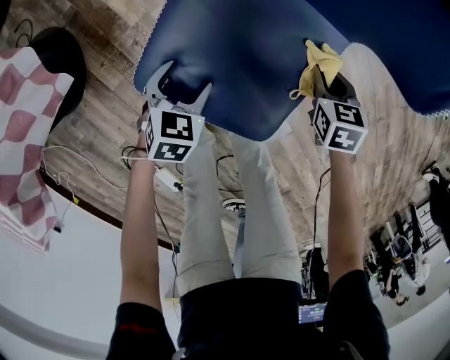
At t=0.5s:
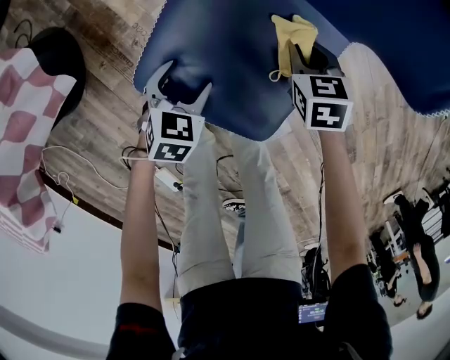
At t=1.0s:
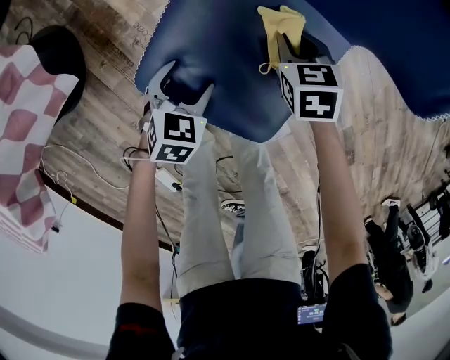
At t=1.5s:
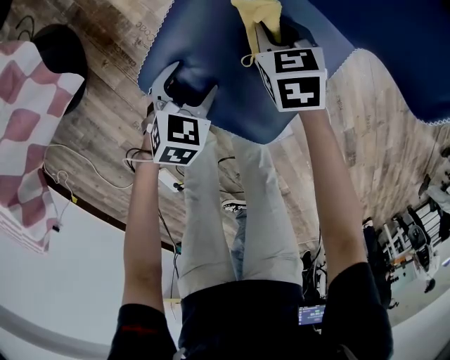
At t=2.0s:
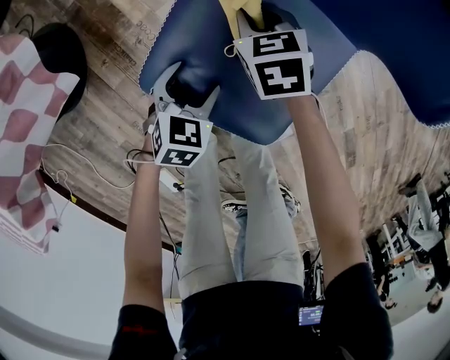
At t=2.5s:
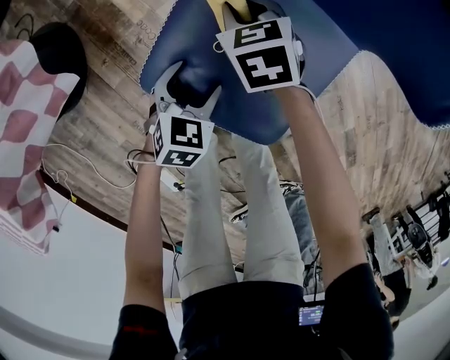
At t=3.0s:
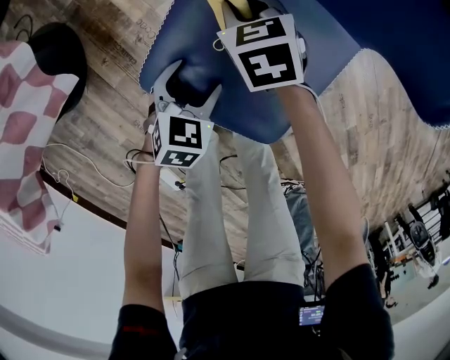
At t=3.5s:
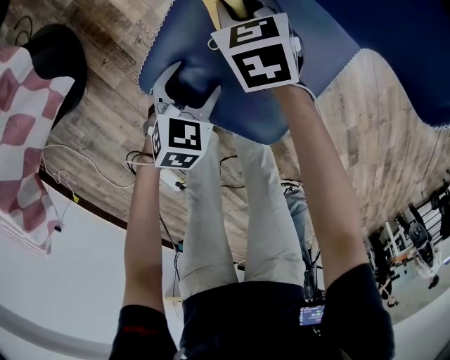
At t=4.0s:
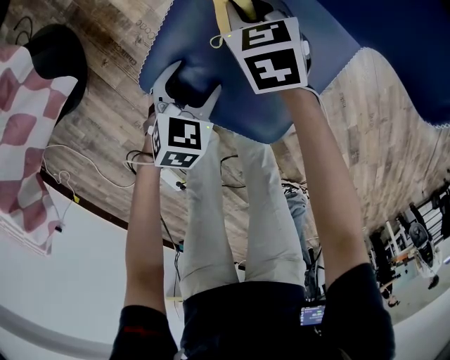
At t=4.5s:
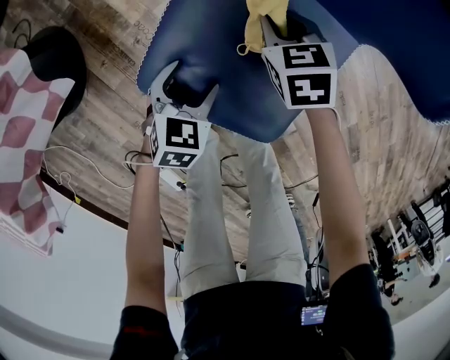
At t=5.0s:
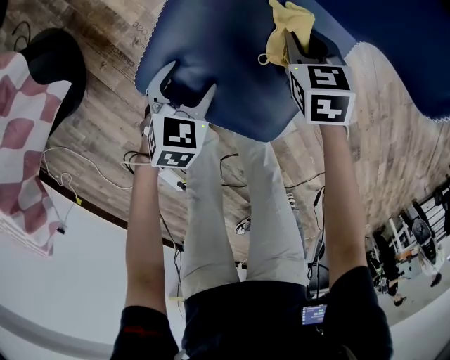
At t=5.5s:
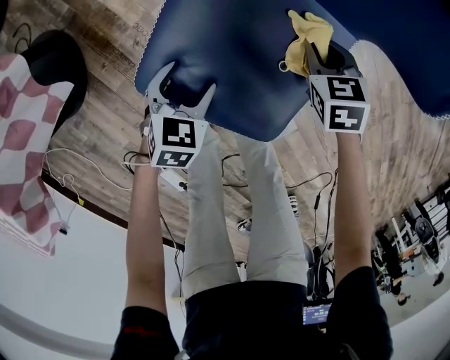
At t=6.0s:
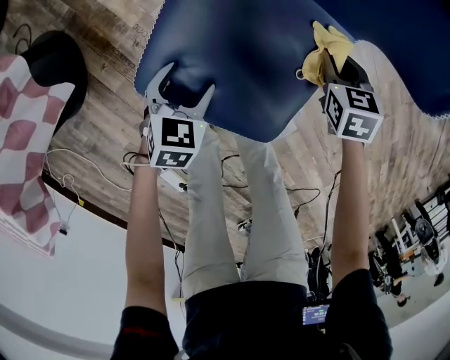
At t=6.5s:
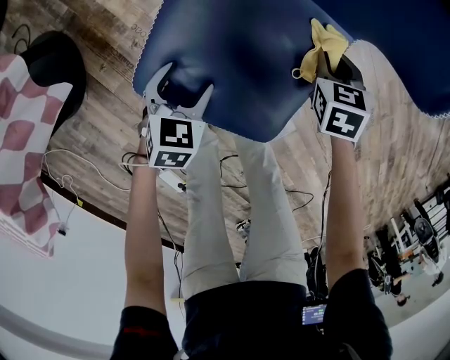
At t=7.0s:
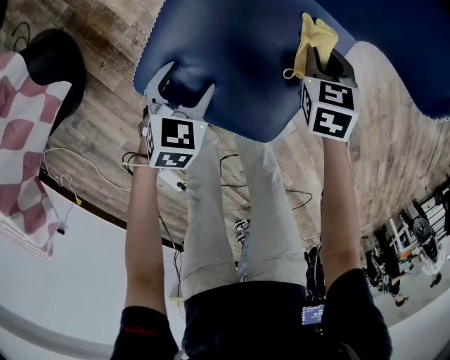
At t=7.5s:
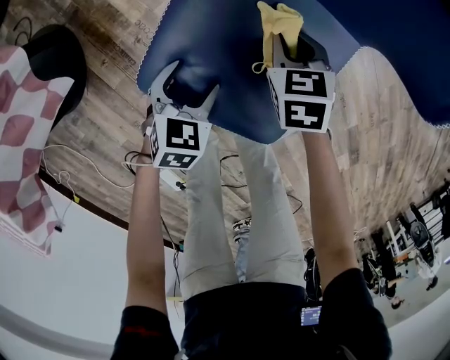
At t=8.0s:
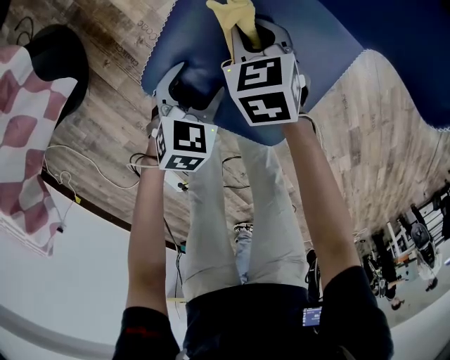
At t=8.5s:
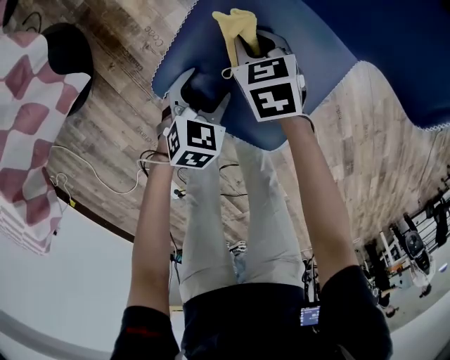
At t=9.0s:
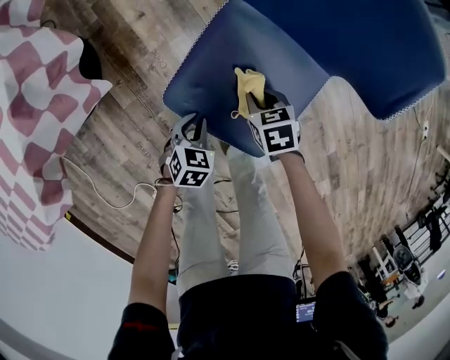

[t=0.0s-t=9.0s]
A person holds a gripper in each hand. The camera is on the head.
t=0.0s to t=2.0s: The right gripper shifts about 20 cm to the left.
t=2.0s to t=4.5s: The right gripper moves to the right, approximately 5 cm.
t=4.5s to t=7.0s: The right gripper moves to the right, approximately 15 cm.
t=7.0s to t=9.0s: The right gripper moves approximately 15 cm, and swivels some 20 degrees; the left gripper shifts by roughly 5 cm, and closes.

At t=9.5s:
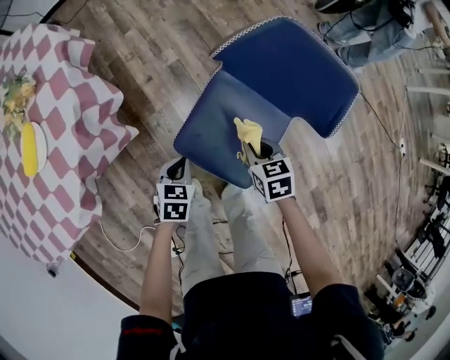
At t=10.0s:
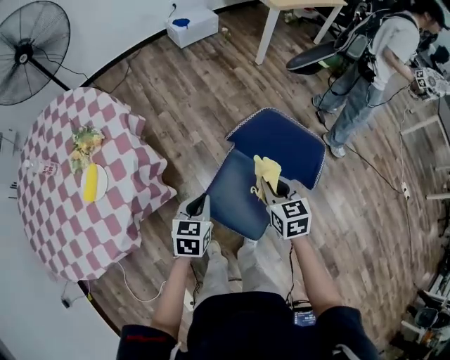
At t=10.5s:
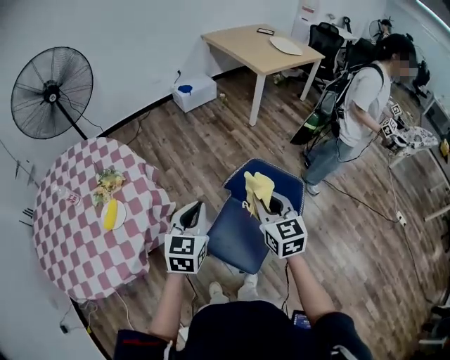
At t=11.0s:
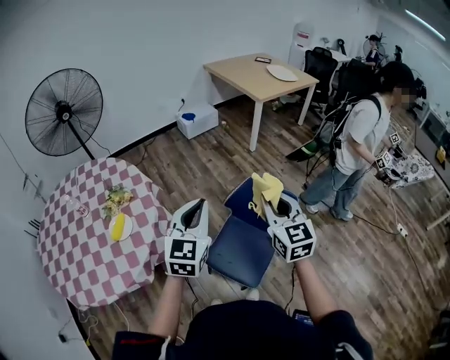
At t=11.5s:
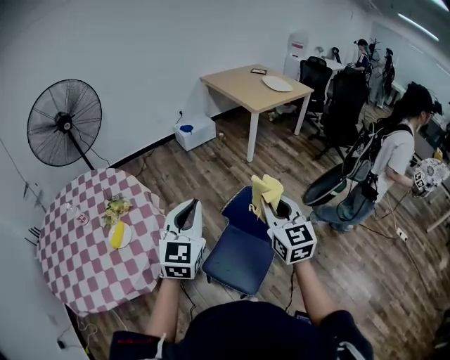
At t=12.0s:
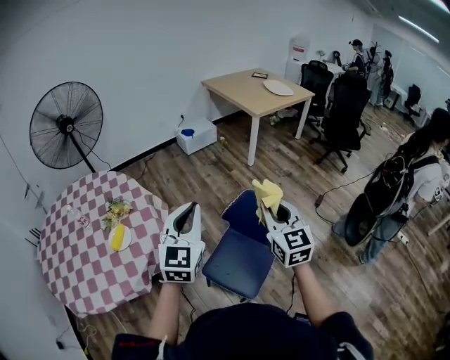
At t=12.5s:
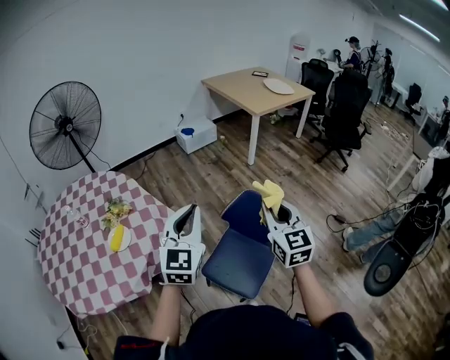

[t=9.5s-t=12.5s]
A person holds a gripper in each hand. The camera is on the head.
t=9.5s to t=11.0s: Both grippers travel together upward, roughly 60 cm. The left gripper angles its fingers upward, by about 50 degrees. The right gripper tilts its fingers roughly 50 degrees upward.
t=11.0s to t=12.5s: There are only small adjustments of the grippers.

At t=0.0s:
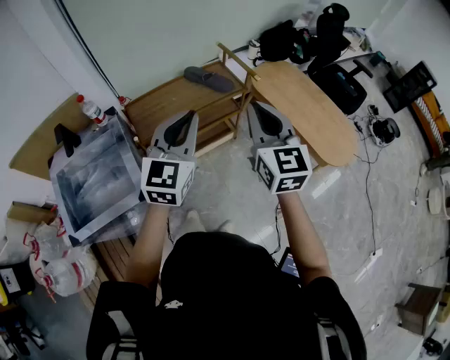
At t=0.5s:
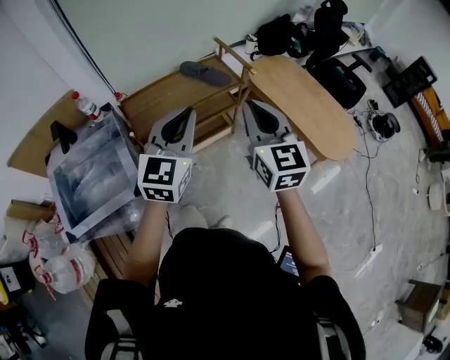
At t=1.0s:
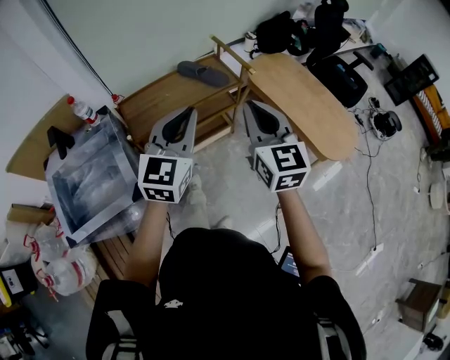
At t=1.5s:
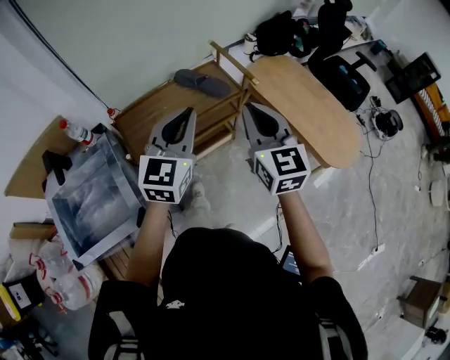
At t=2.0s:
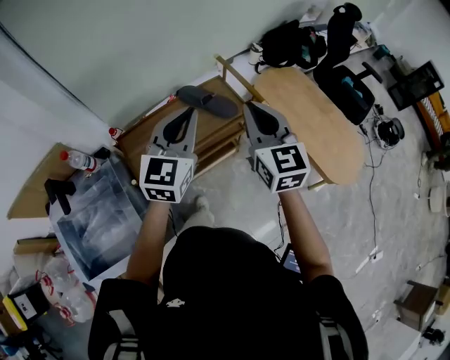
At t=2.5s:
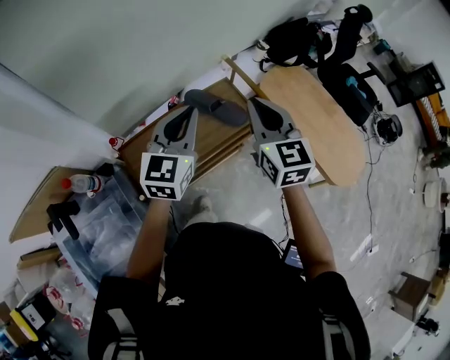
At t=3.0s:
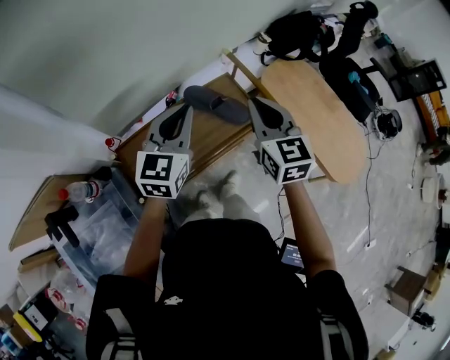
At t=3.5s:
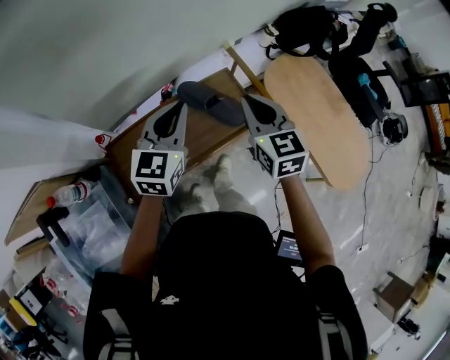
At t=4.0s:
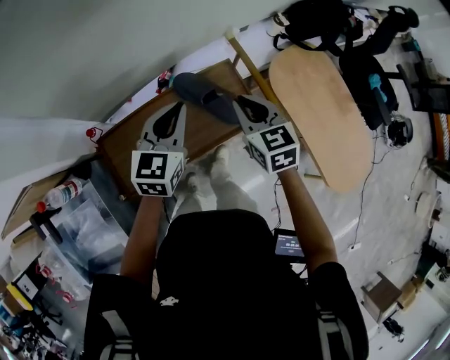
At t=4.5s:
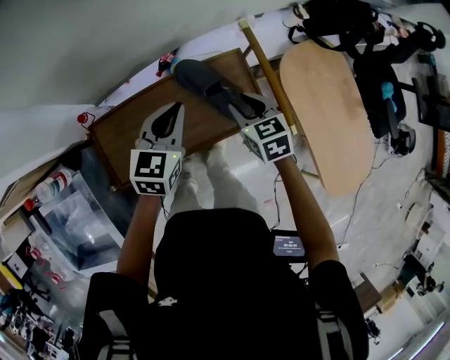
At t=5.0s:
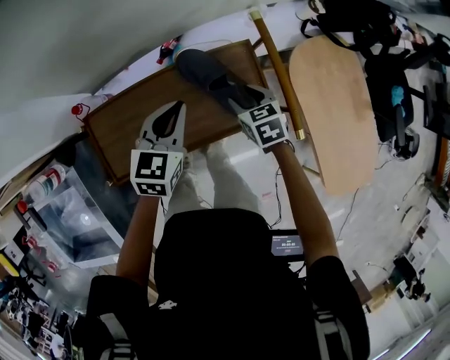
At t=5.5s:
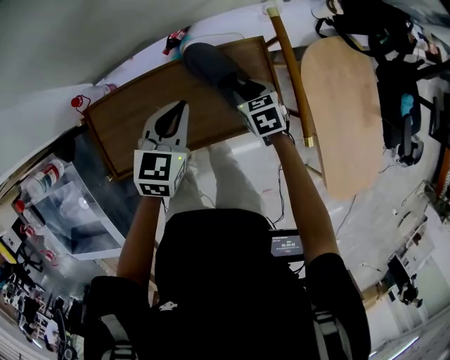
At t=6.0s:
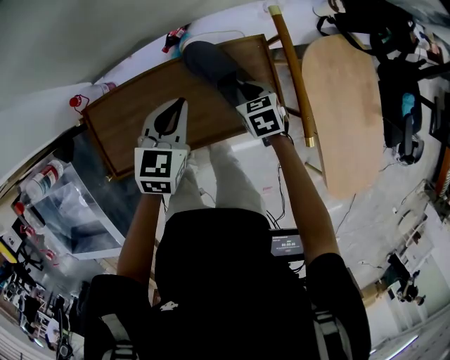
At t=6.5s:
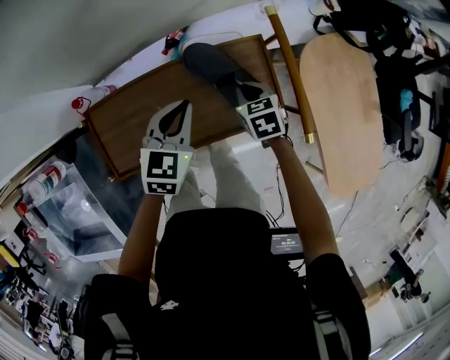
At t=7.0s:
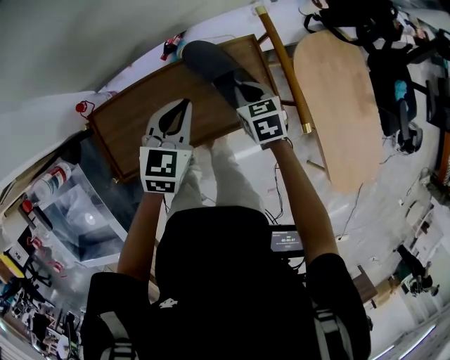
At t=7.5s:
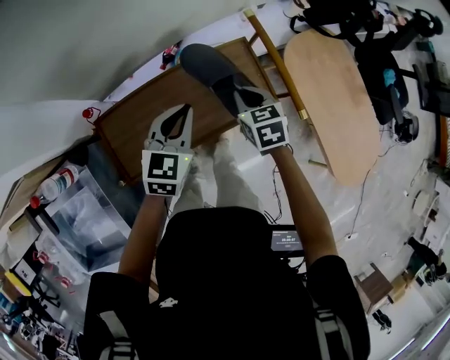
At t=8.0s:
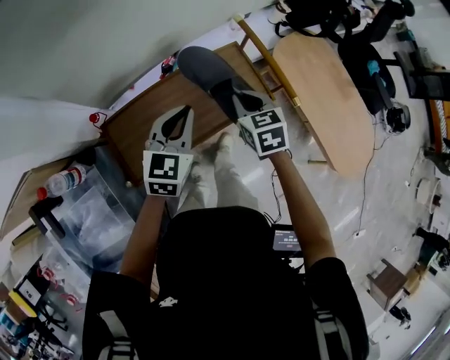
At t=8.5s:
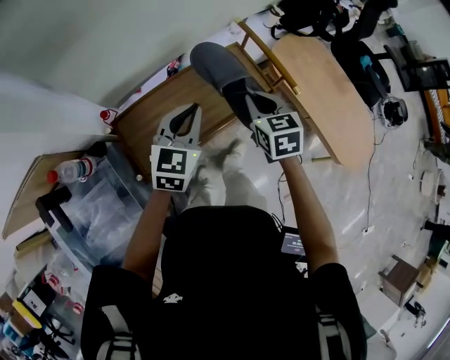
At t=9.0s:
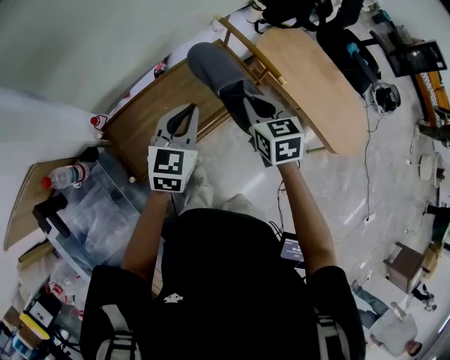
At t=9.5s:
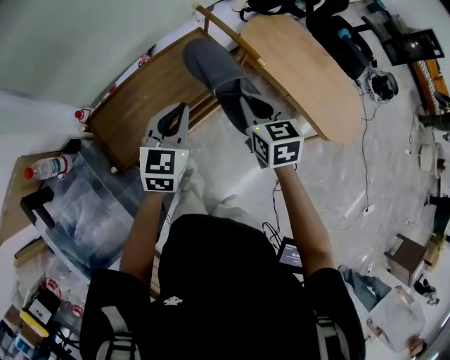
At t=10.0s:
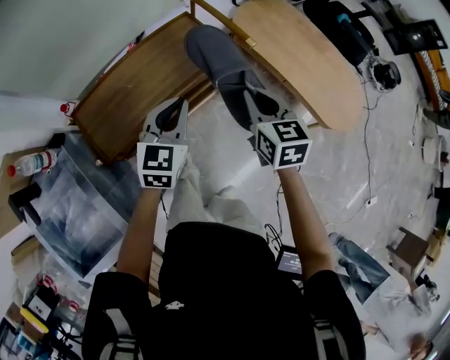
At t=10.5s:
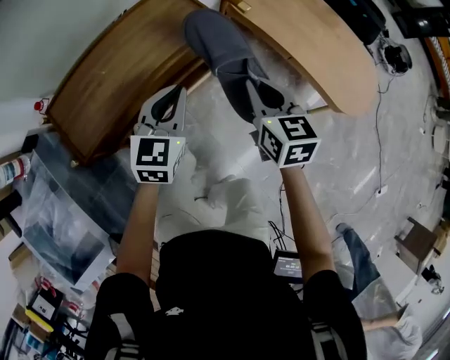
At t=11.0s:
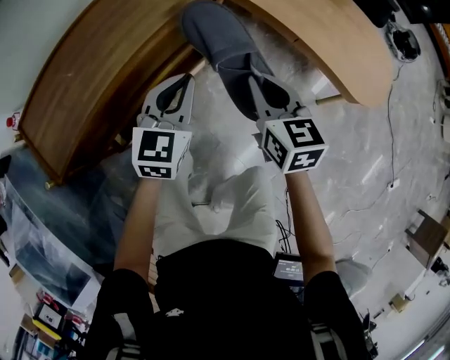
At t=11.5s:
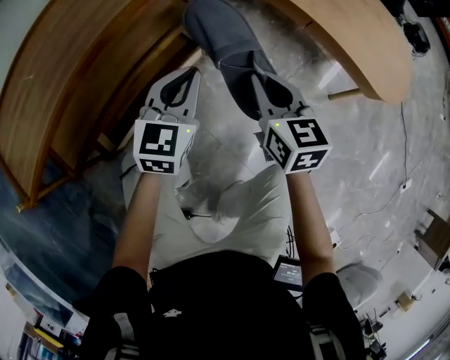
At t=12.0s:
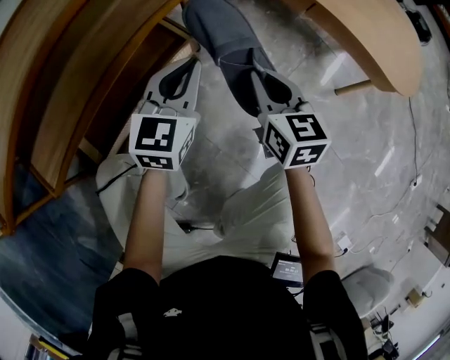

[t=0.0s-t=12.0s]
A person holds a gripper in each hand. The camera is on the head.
t=0.0s to t=2.0s: The grippers both shift forward by approximately 25 cm.
t=2.0s to t=4.0s: Both grippers travel together forward and downward, some 30 cm. The right gripper rotates approximately 30 degrees. The left gripper turns by roughly 20 degrees.
t=4.0s to t=6.0s: The left gripper travels downward by approximately 15 cm. The right gripper shifts some 25 cm downward, rotates some 30 degrees, and opens, then closes once more.
t=6.0s to t=8.0s: Both grippers travel together upward and backward, some 20 cm. The left gripper changes its angle by some 20 degrees. The right gripper swivels some 20 degrees.
t=8.0s to t=10.0s: Both grippers move backward and to the right, approximately 20 cm. The right gripper turns by some 20 degrees.
t=10.0s to t=12.0s: The grippers both shift downward by about 50 cm.

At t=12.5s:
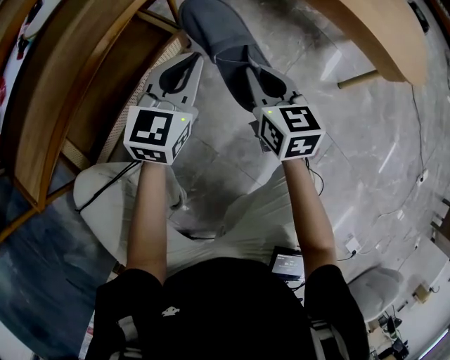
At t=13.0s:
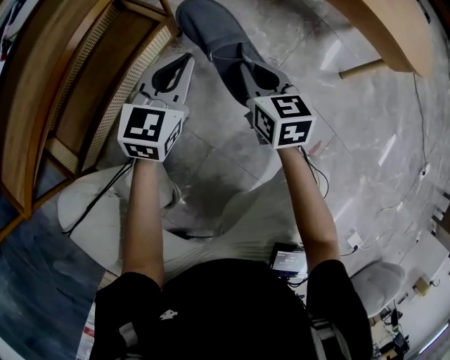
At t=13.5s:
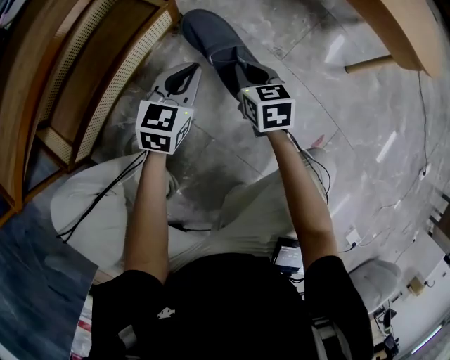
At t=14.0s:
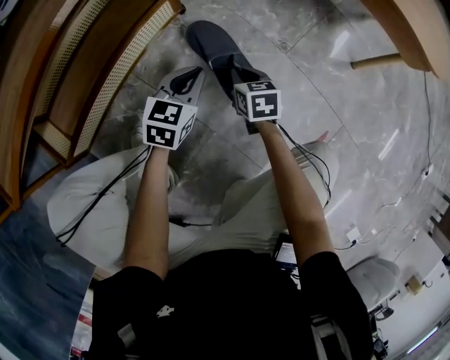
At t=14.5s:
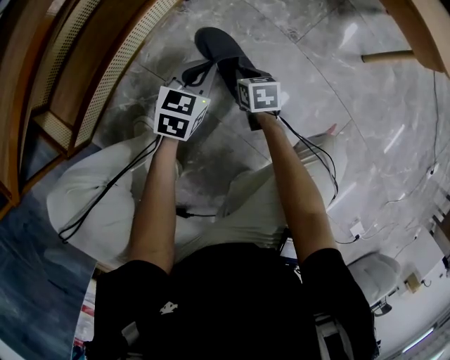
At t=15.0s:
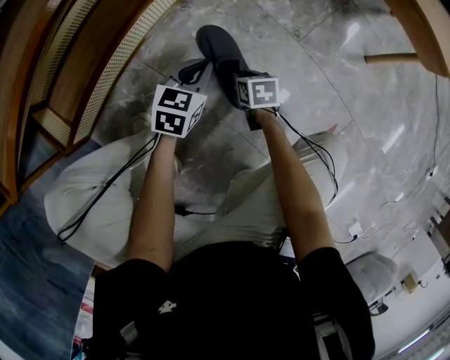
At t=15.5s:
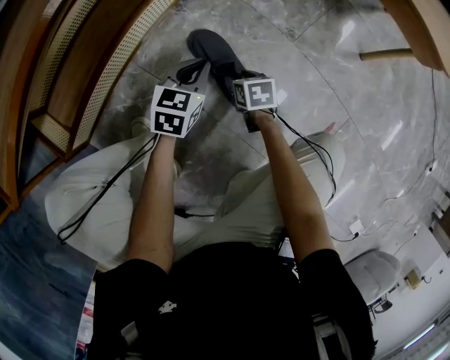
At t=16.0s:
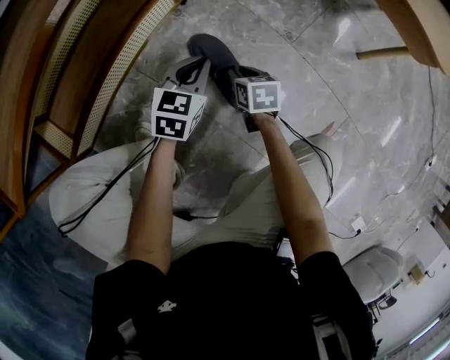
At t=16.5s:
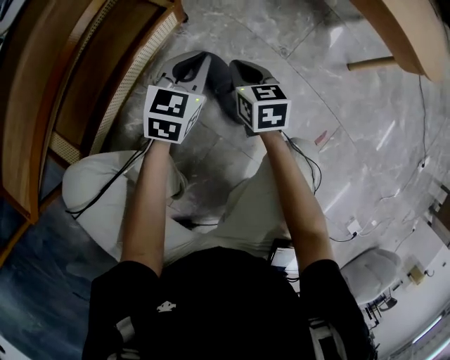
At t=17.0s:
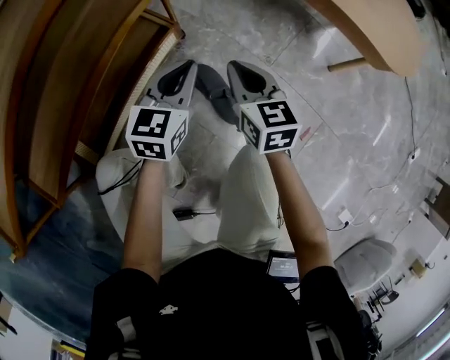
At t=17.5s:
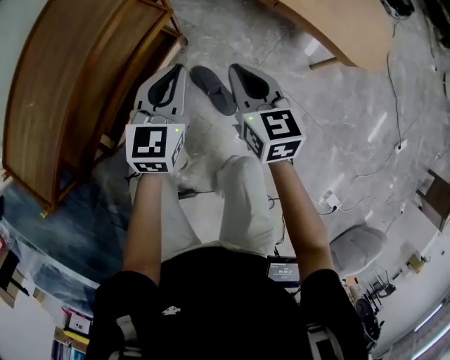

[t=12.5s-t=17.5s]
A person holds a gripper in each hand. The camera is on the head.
t=12.5s to t=15.0s: Both grippers move downward, approximately 30 cm. The left gripper rotates about 30 degrees. Meanwhile the right gripper tilts its fingers roughly 30 degrees downward.
t=15.0s to t=17.5s: Both grippers move upward, approximately 50 cm. The right gripper tips its fingers upward by roughly 30 degrees, and opens, then closes again.
